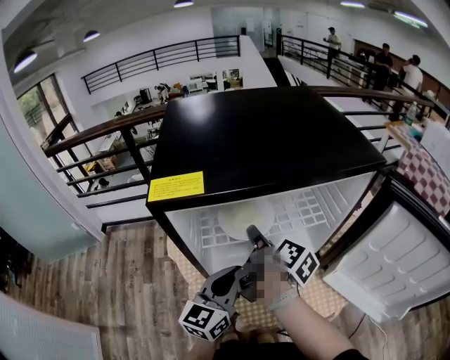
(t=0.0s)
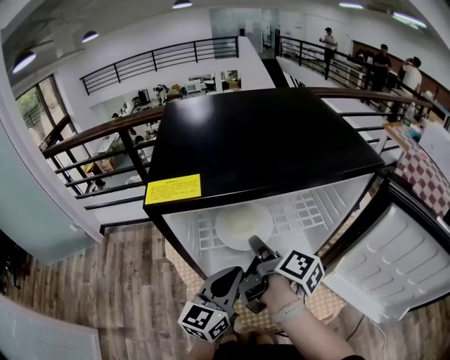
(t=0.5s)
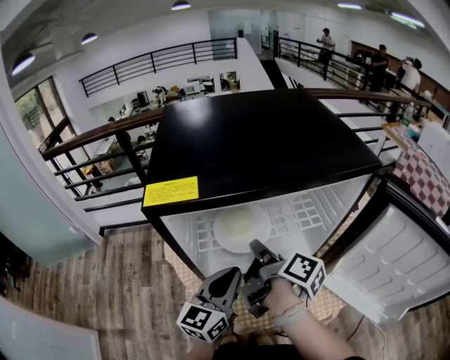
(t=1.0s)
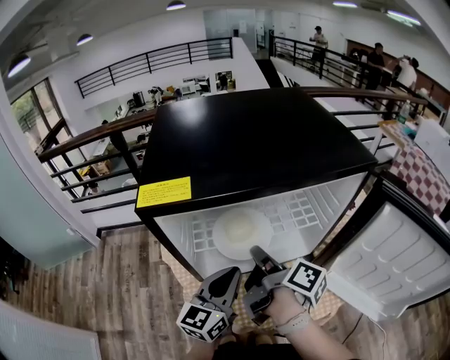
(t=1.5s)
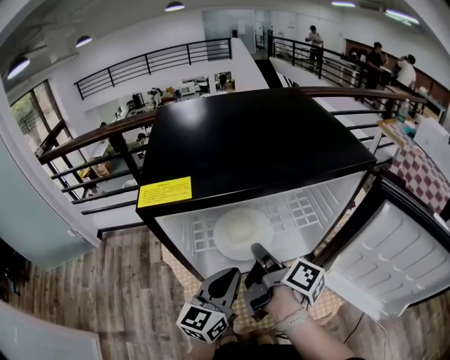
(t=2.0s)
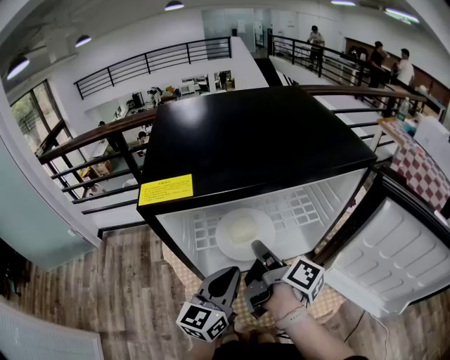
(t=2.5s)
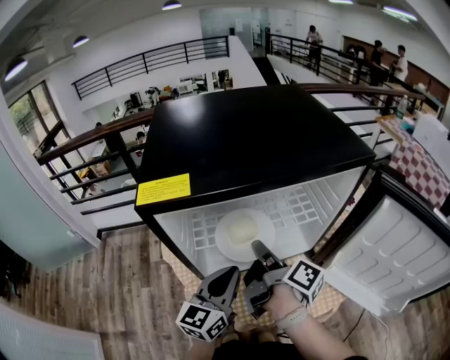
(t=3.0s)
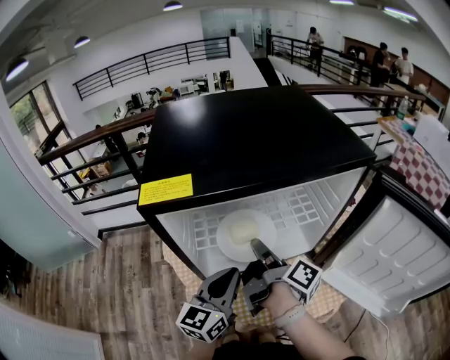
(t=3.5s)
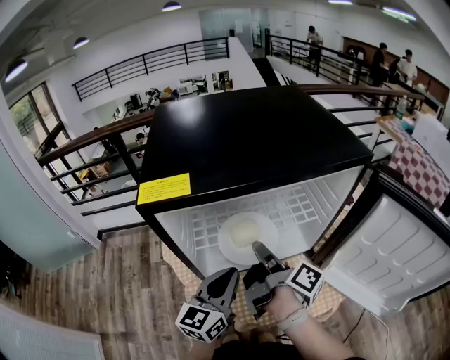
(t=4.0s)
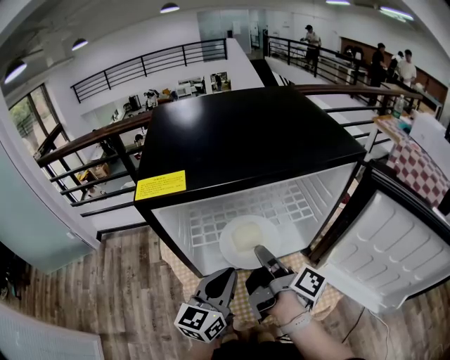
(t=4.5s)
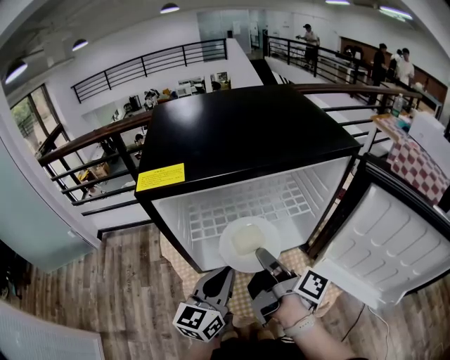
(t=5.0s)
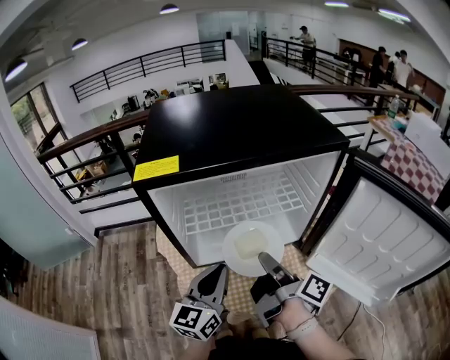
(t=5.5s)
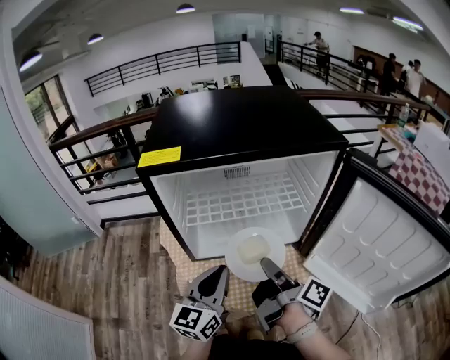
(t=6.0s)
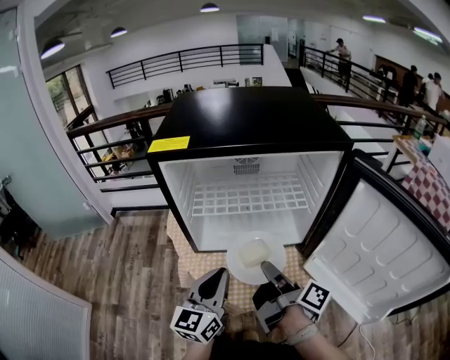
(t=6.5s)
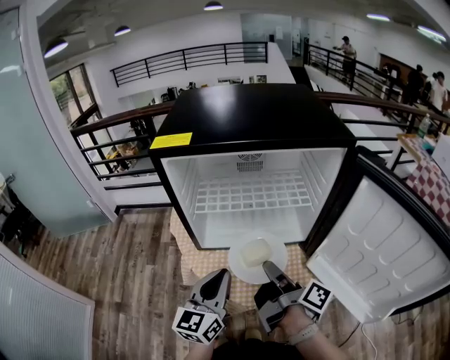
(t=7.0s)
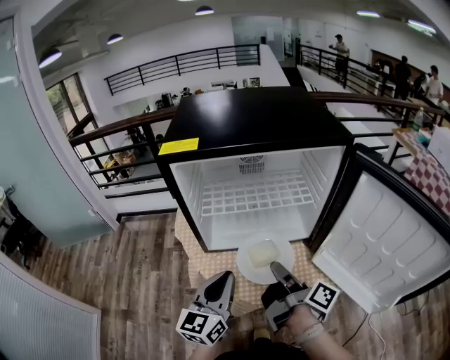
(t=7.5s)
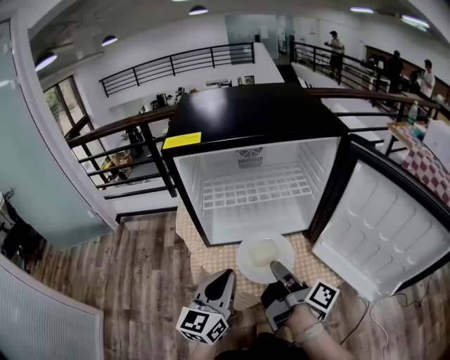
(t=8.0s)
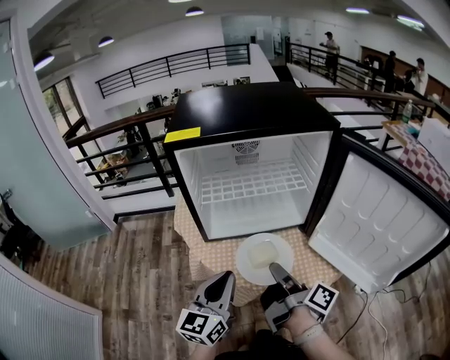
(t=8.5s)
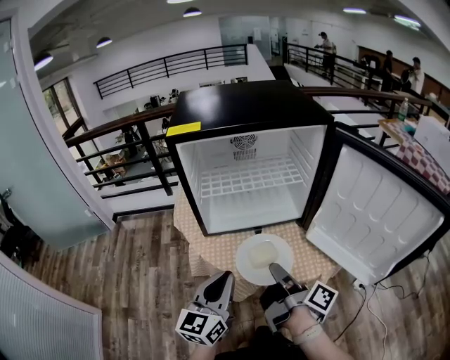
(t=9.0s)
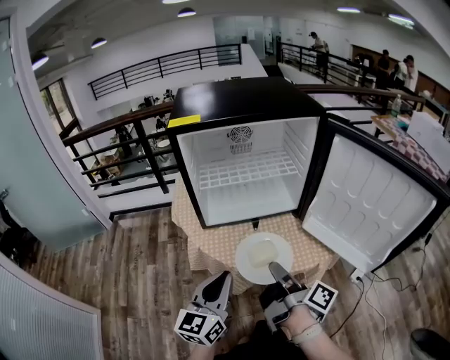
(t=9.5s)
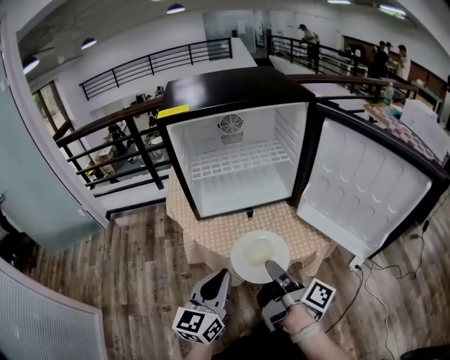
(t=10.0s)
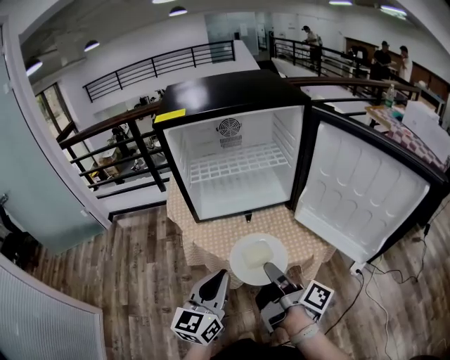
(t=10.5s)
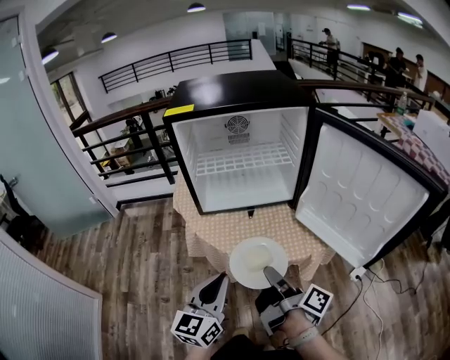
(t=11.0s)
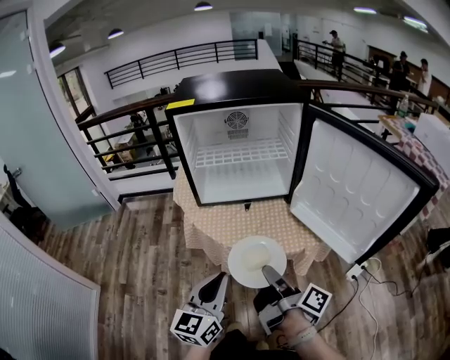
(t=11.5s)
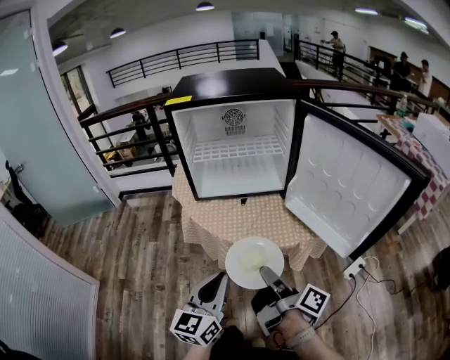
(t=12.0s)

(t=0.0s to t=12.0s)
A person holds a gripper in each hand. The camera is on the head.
t=0.0s - t=2.0s: The right gripper shifts by about 5 cm.
t=2.0s - t=4.0s: The grippers stay close to where they were, moving slightly.
t=4.0s - t=6.0s: The left gripper goes some 5 cm backward, while the right gripper moves backward and to the right, some 10 cm.
t=6.0s - t=8.0s: The two grippers go about 5 cm backward.
t=8.0s - t=10.0s: Both grippers move backward, approximately 10 cm.
t=10.0s - t=12.0s: Both grippers move backward and to the right, some 10 cm.

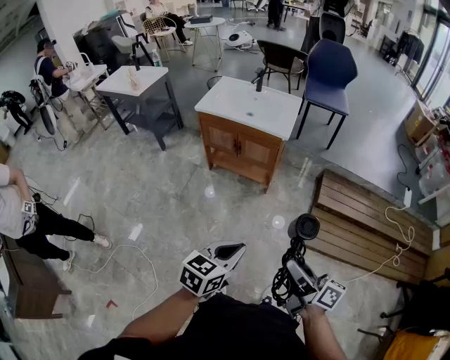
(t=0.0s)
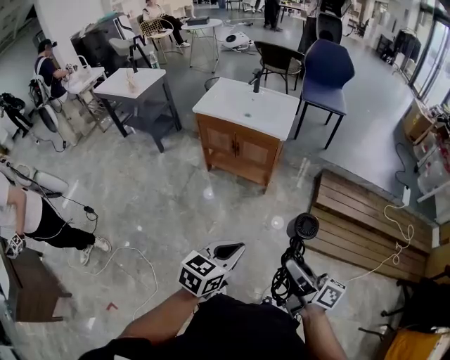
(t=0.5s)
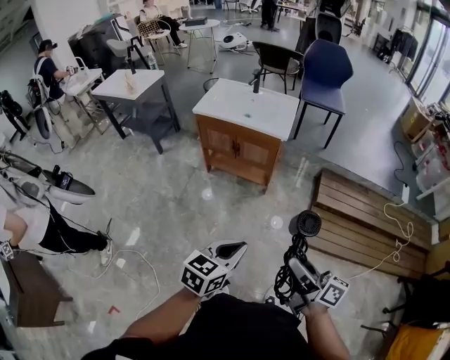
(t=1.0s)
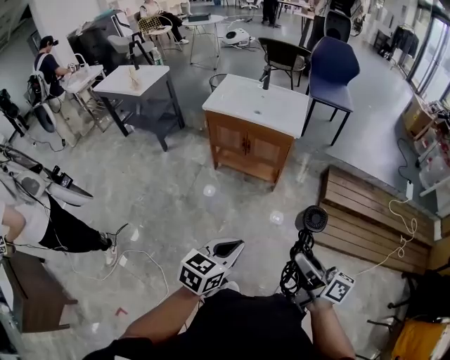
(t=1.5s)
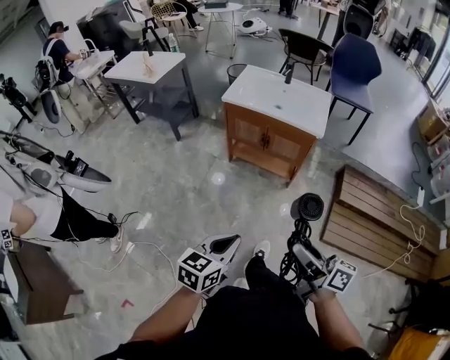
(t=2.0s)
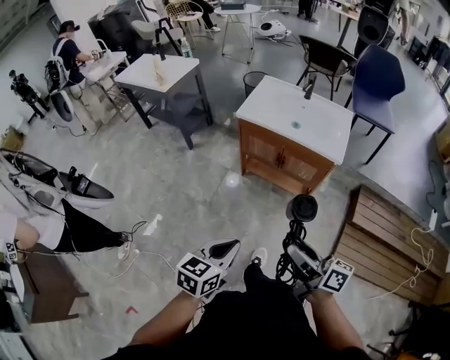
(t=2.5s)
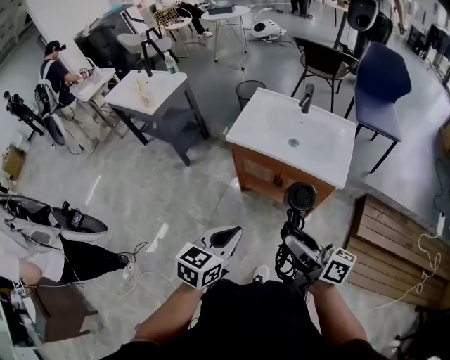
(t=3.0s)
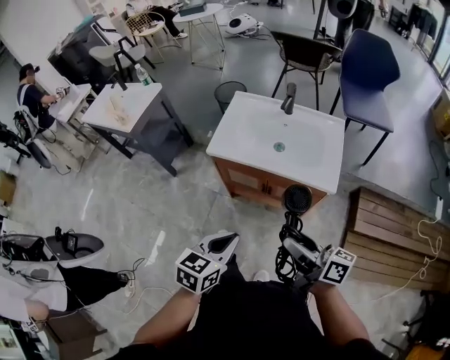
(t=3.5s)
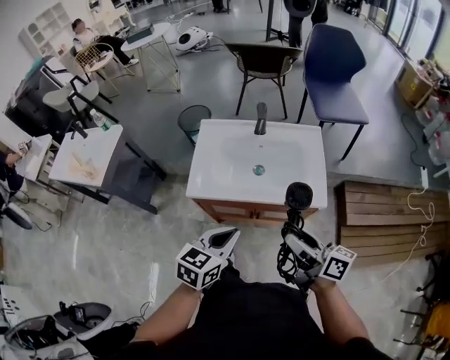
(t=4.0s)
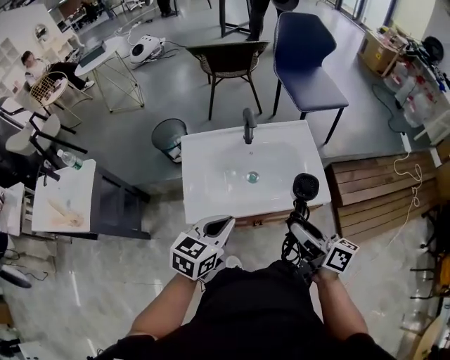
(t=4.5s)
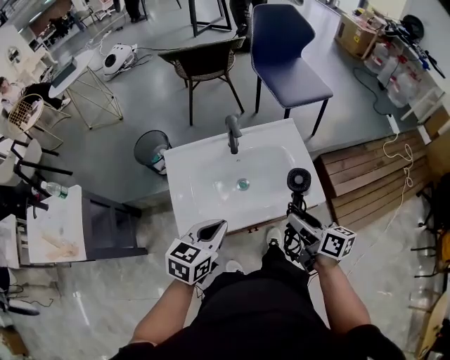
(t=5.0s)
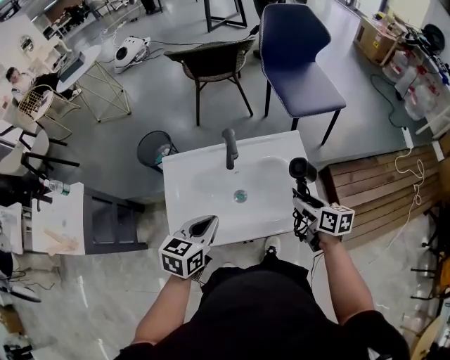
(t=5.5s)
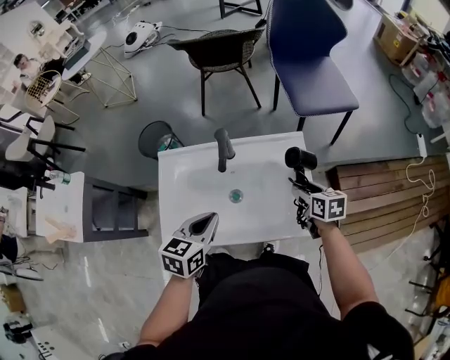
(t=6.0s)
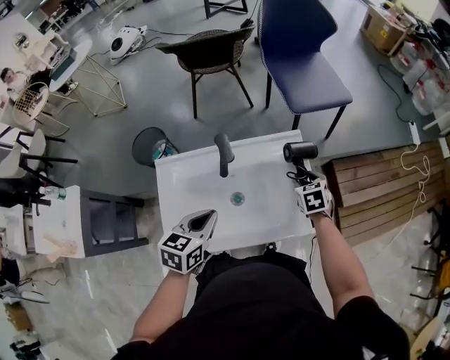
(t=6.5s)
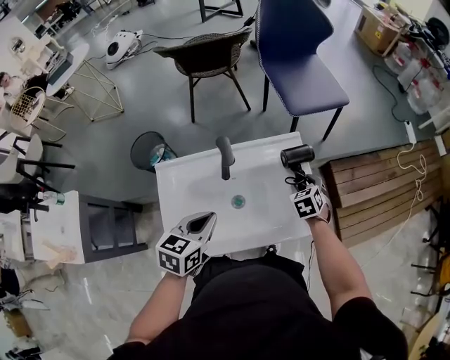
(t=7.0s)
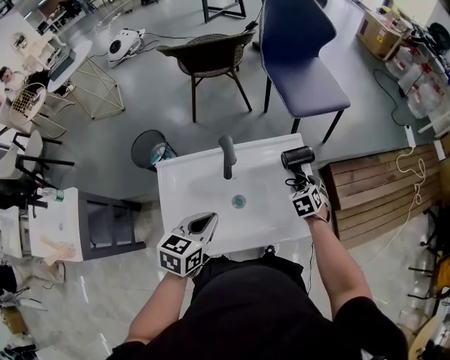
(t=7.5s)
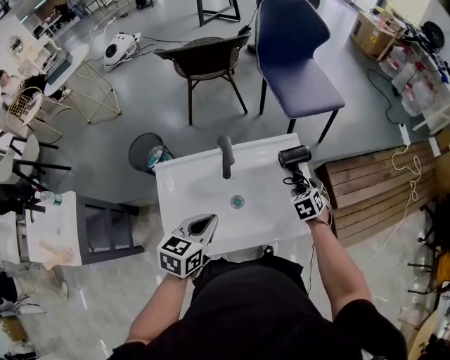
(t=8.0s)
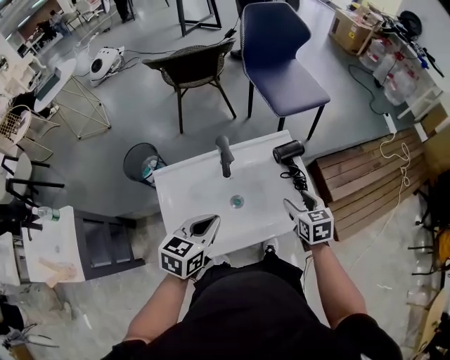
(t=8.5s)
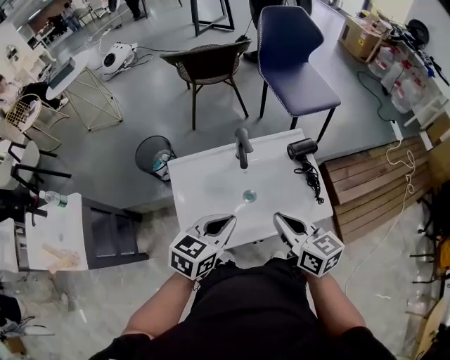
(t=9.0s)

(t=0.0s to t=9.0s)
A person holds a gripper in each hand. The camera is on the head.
t=0.0s - t=2.0s: The right gripper shifts about 20 cm to the left and forward, while the left gripper heads to the left, covering roughly 20 cm.
t=2.0s - t=4.5s: The pair of grippers is taken roughly 60 cm. The left gripper changes its angle by roughly 30 degrees, while the right gripper rotates roughly 30 degrees.
t=4.5s - t=7.0s: The right gripper goes roughly 35 cm forward and downward, and tips its fingers downward by about 50 degrees; the left gripper shifts approximately 20 cm forward.
t=7.0s - t=9.0s: The right gripper moves backward, upward and to the left, approximately 35 cm, tips its fingers upward by approximately 40 degrees, and closes up; the left gripper shifts about 5 cm backward.

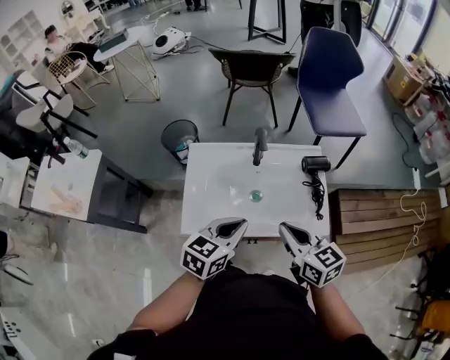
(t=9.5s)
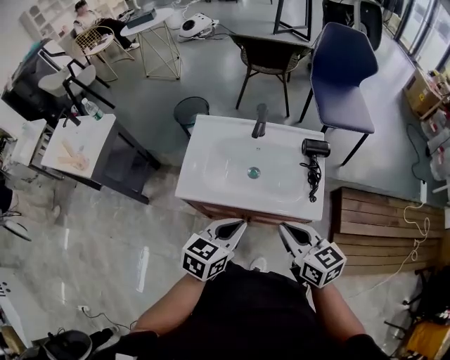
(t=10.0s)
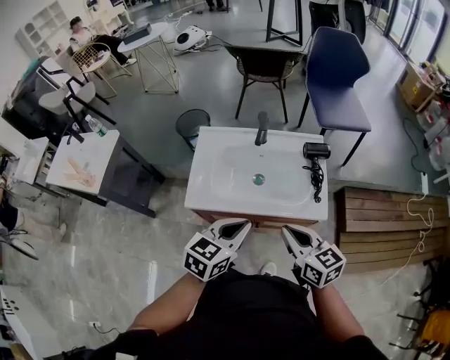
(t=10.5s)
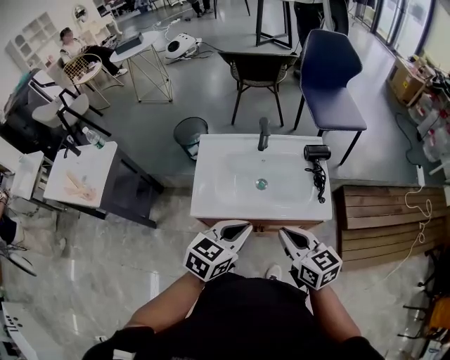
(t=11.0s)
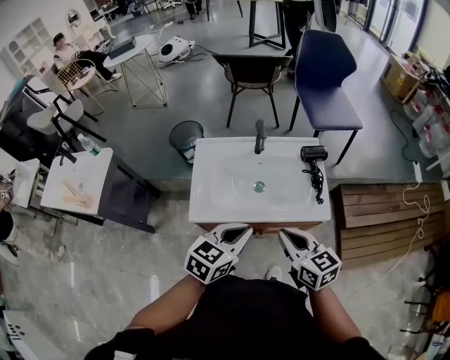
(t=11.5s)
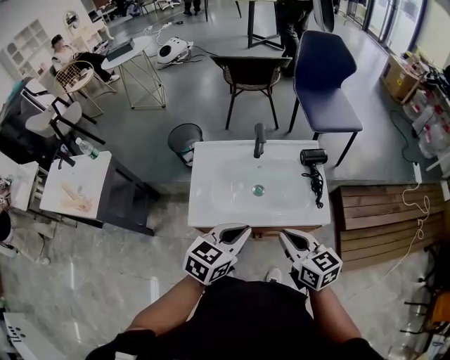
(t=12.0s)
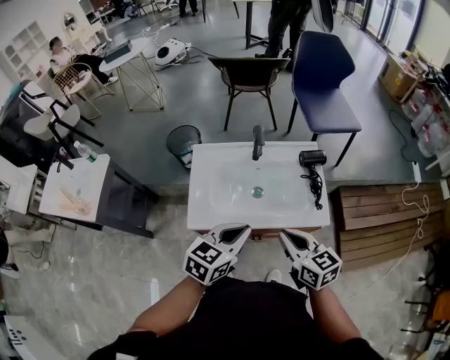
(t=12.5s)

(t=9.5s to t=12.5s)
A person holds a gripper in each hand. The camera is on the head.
t=9.5s - t=11.0s: The two grippers go about 10 cm backward.
t=11.0s - t=12.5s: The grippers make only small movements.

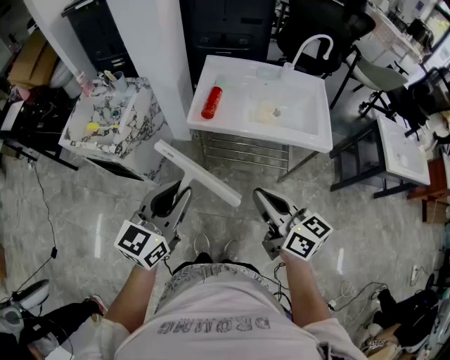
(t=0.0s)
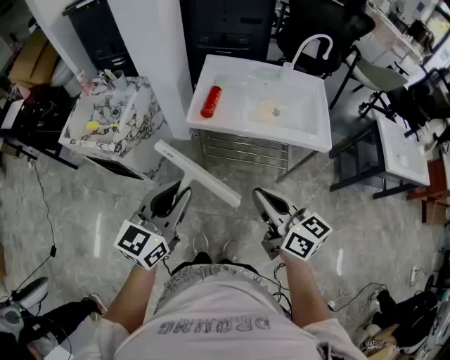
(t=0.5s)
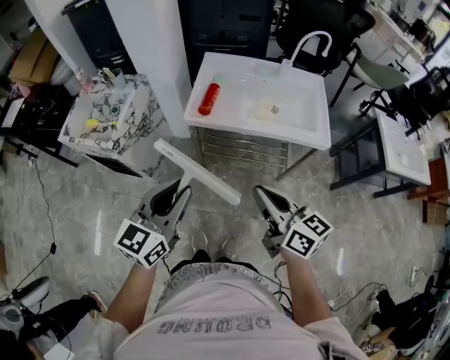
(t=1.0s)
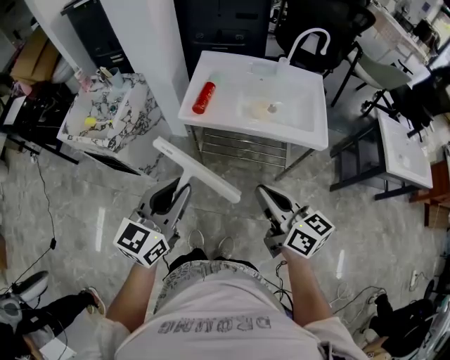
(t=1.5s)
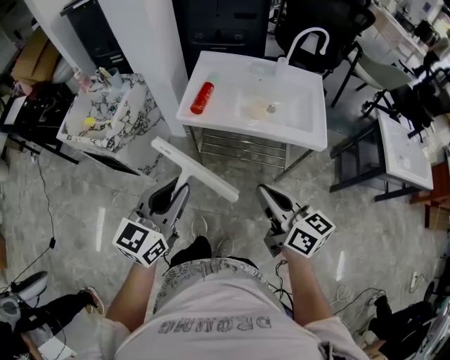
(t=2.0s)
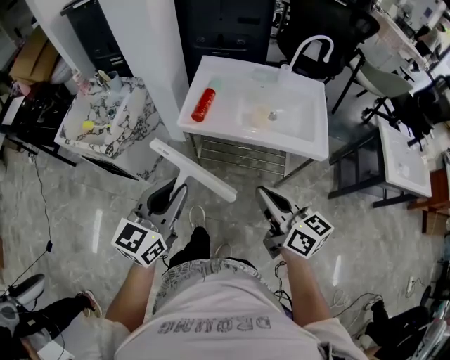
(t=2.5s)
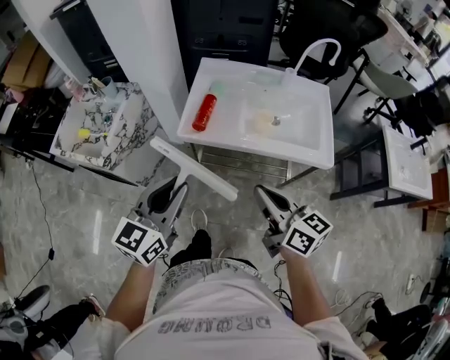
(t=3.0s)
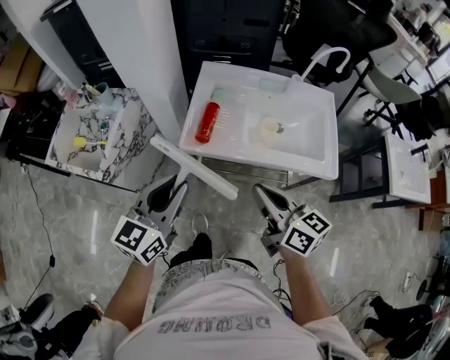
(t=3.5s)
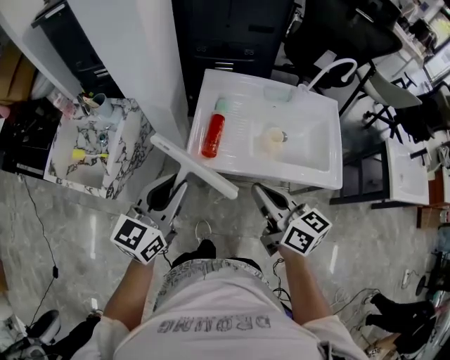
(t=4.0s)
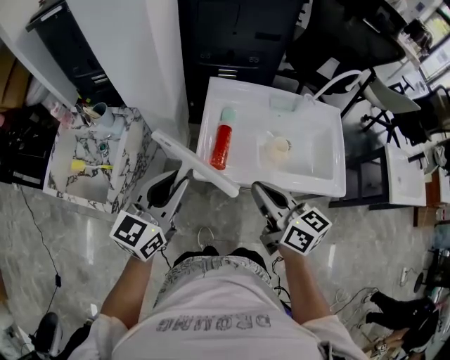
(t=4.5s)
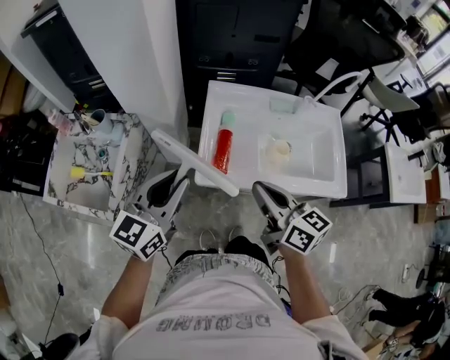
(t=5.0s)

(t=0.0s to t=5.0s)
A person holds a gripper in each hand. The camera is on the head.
t=0.0s - t=2.5s: The right gripper goes approximately 5 cm to the right. Meanwhile the left gripper changes place by roughly 5 cm.
t=2.5s - t=5.0s: The left gripper is displaced forward by some 30 cm; the right gripper is displaced forward and to the left by some 30 cm.
